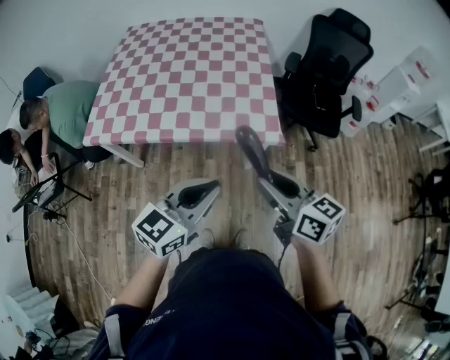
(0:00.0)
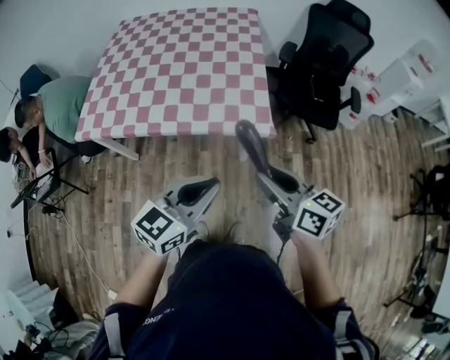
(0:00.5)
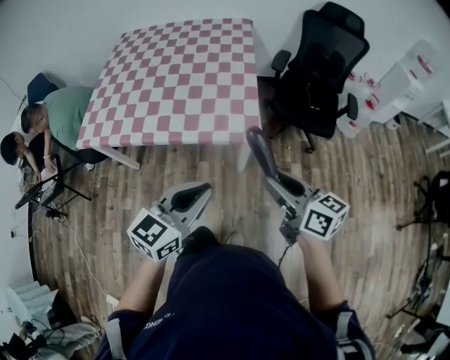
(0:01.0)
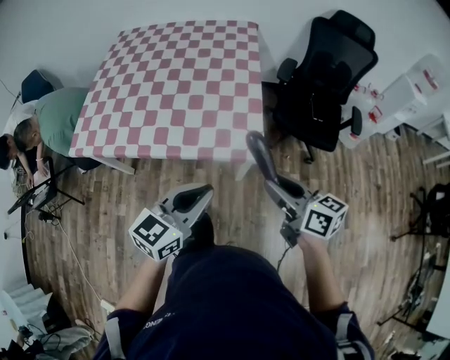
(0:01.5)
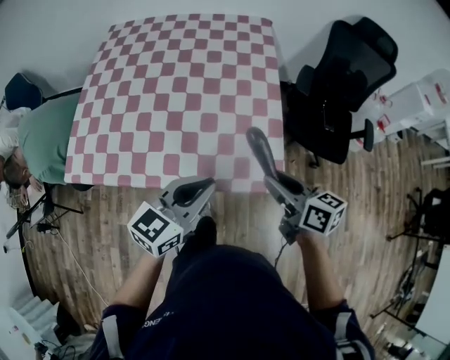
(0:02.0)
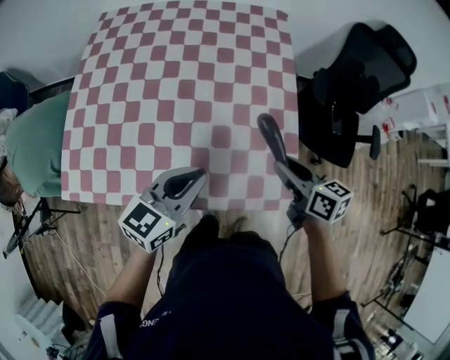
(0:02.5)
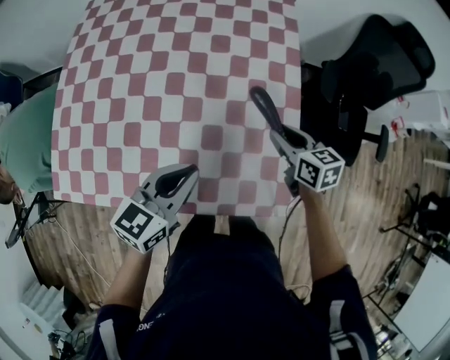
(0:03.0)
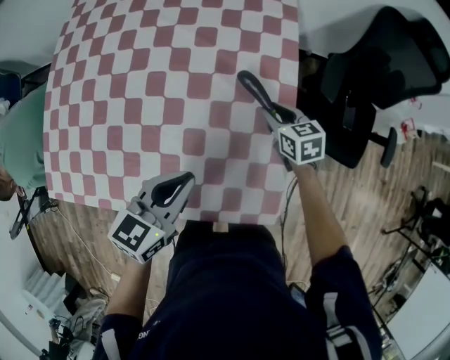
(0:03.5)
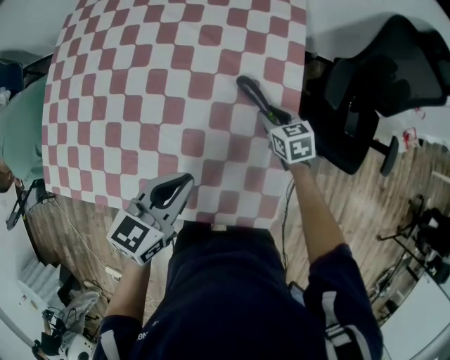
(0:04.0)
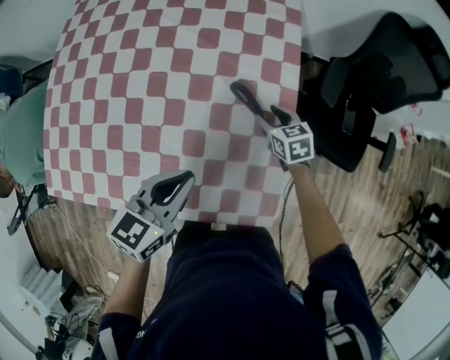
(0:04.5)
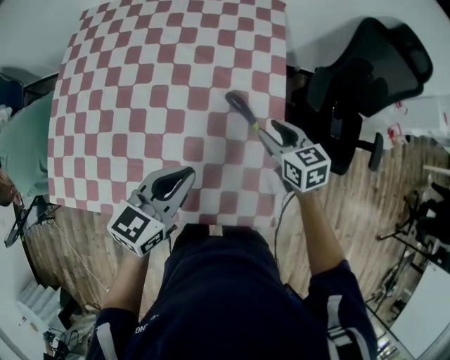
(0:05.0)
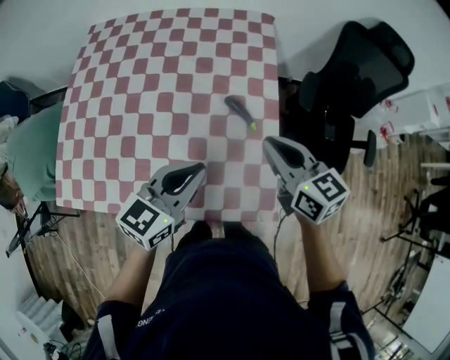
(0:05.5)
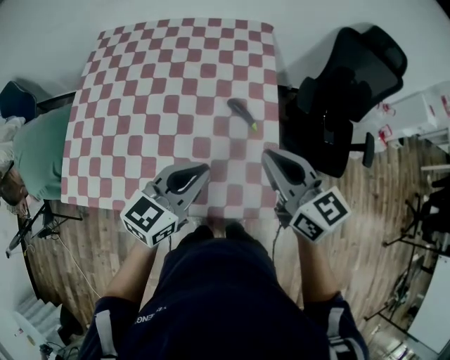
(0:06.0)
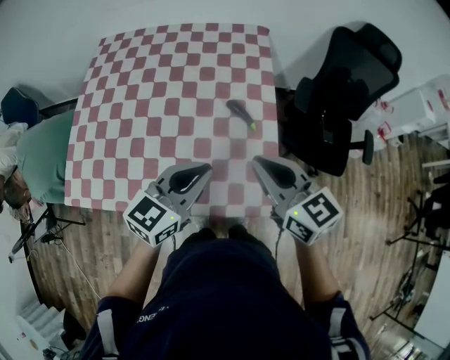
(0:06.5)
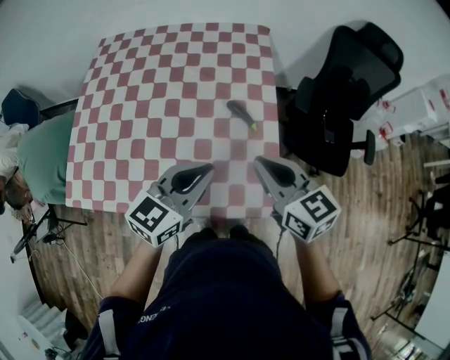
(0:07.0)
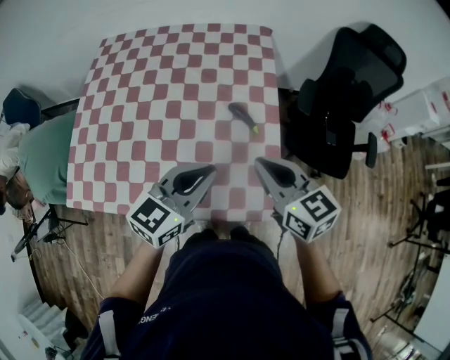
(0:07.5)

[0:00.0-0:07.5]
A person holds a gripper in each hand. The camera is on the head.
0:00.0 to 0:02.0: Both grippers move forward, about 25 cm.
0:02.0 to 0:04.0: The right gripper moves forward and downward, some 40 cm, and rotates approximately 40 degrees, while the left gripper travels forward and downward by roughly 25 cm, and changes its angle by about 20 degrees.
0:04.0 to 0:05.5: The right gripper shifts approximately 35 cm upward and backward, angles its fingers upward, by roughly 30 degrees, and closes its fingers, while the left gripper moves upward, approximately 10 cm.
0:05.5 to 0:07.5: The right gripper goes roughly 5 cm backward.

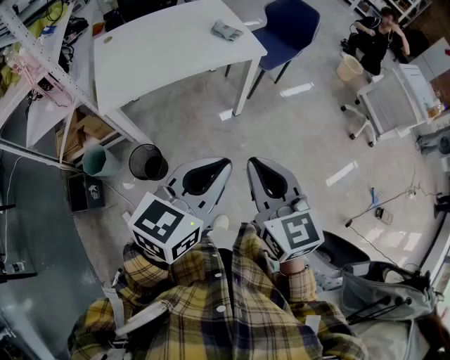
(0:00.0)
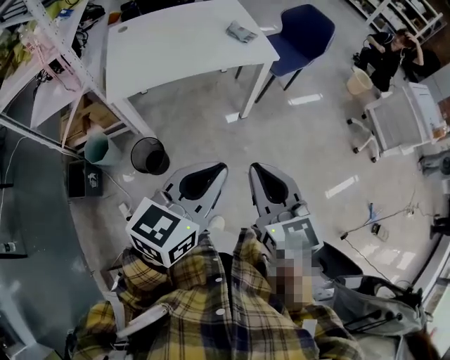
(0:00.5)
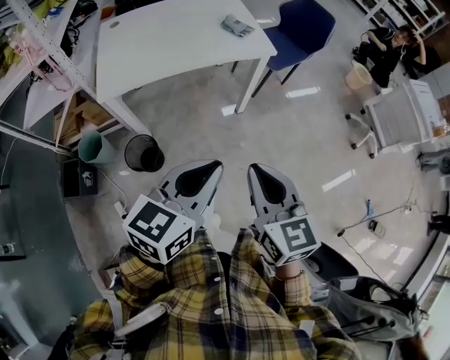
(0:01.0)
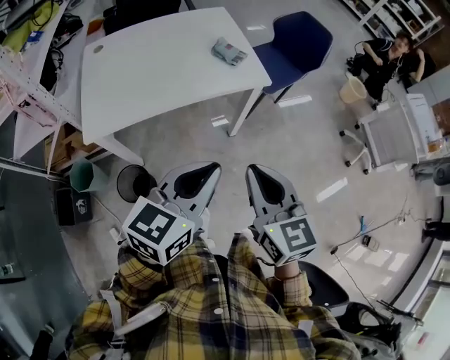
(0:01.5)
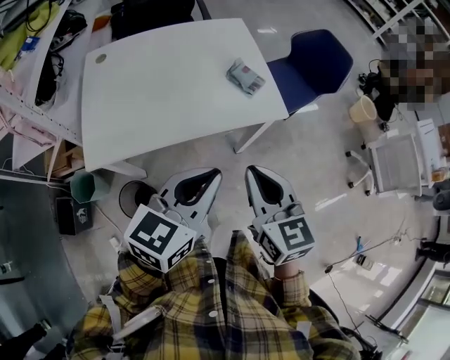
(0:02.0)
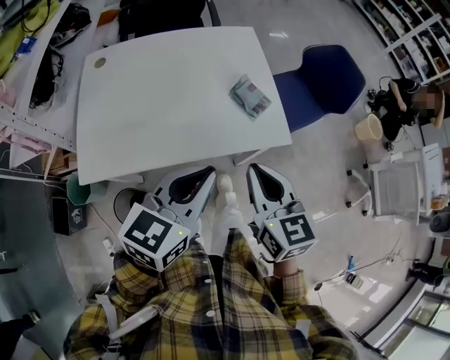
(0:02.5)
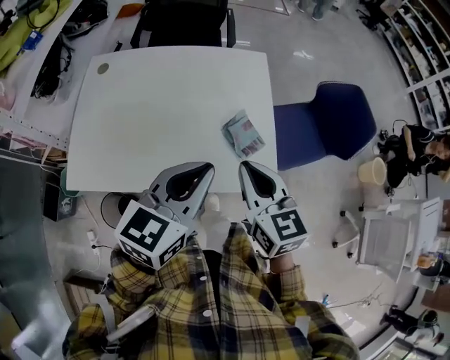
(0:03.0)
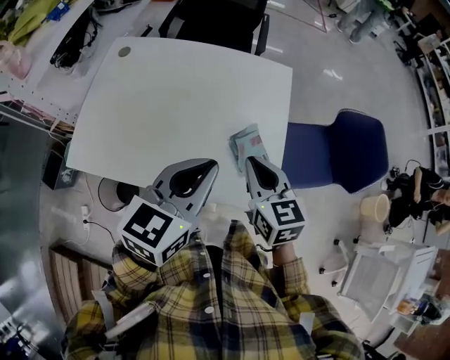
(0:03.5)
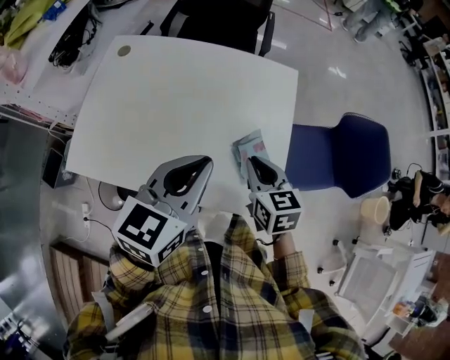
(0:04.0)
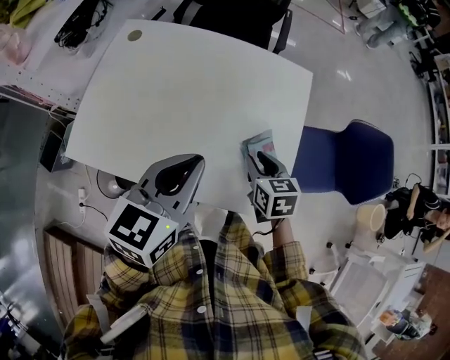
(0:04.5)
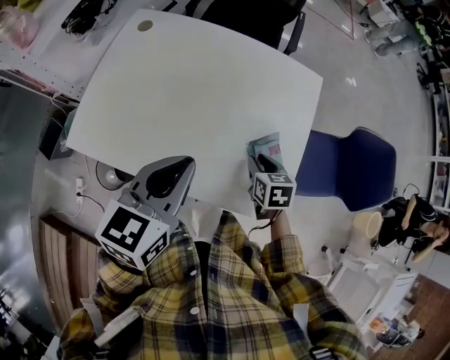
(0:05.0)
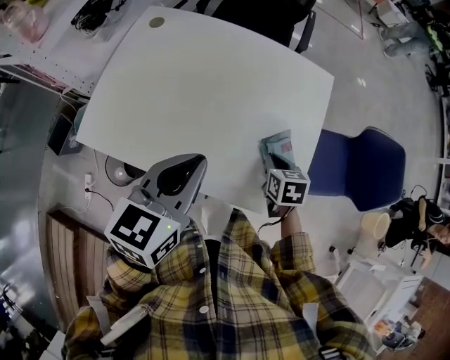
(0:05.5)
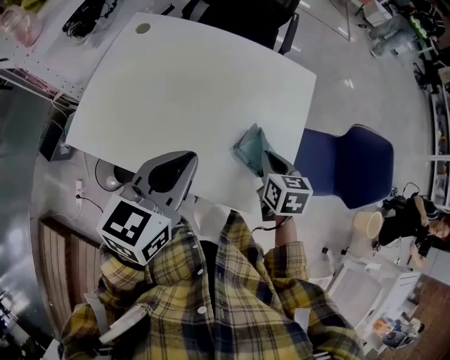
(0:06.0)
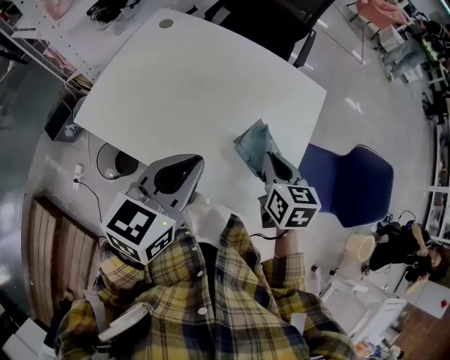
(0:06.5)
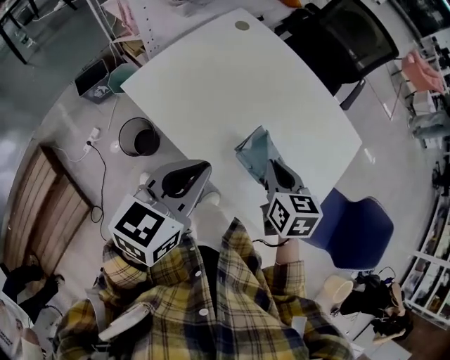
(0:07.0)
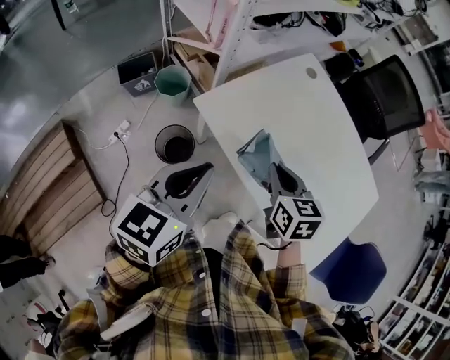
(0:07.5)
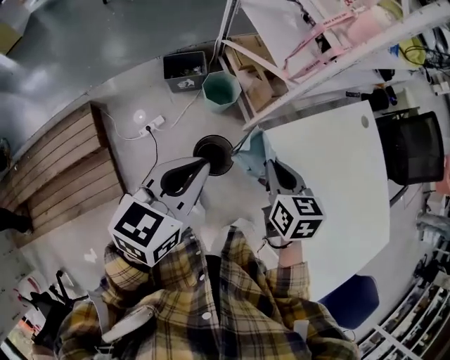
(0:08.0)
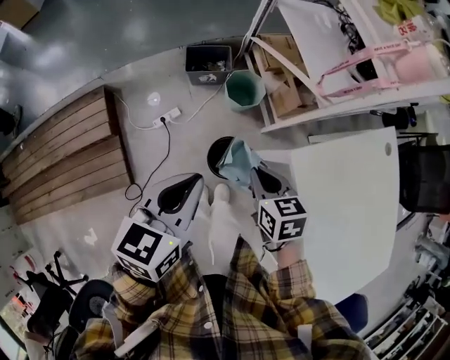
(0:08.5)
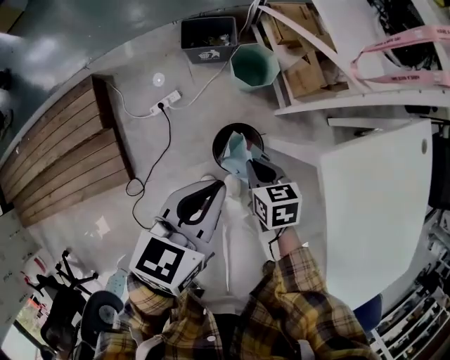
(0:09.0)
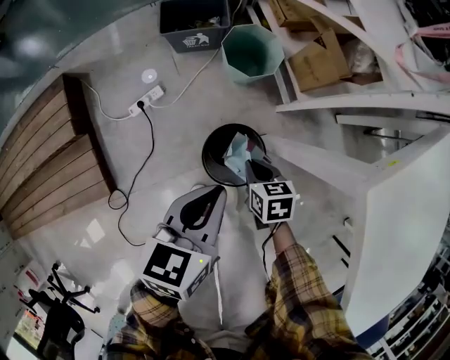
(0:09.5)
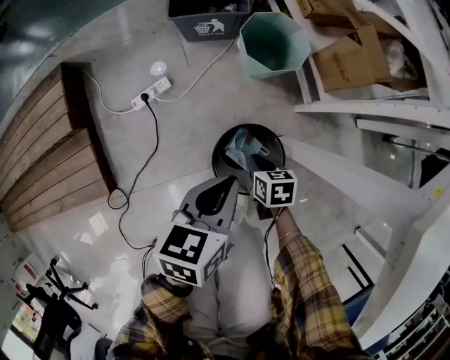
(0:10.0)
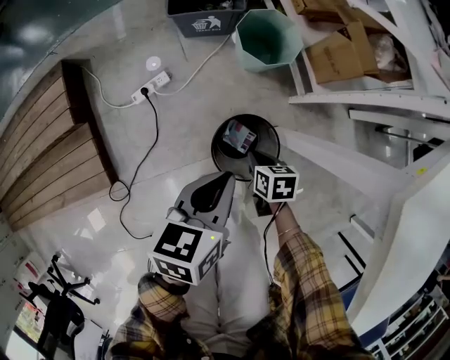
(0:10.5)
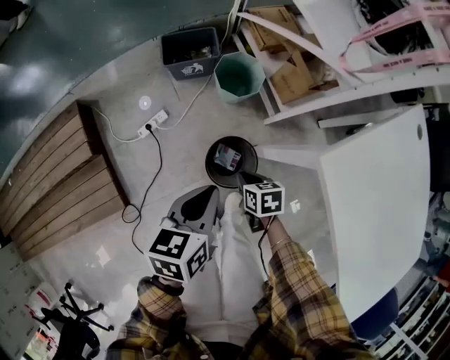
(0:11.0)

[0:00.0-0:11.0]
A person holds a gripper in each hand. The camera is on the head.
0:00.0 to 0:02.0: Both grippers move forward, about 30 cm.
0:02.0 to 0:03.5: The left gripper ends up some 30 cm from where it was, and changes its angle by roughly 30 degrees. Meanwhile the right gripper changes place by approximately 35 cm, and changes its angle by approximately 30 degrees.
0:03.5 to 0:05.5: The right gripper heads downward, covering roughly 20 cm, changes its angle by about 30 degrees, and opens, then closes once more; the left gripper goes approximately 10 cm to the left.
0:05.5 to 0:07.5: The left gripper moves about 30 cm, and turns by some 30 degrees. Meanwhile the right gripper moves about 40 cm, and rotates roughly 40 degrees.
0:07.5 to 0:09.0: The left gripper moves some 35 cm, and swivels about 30 degrees. The right gripper shifts by some 50 cm, and changes its angle by some 30 degrees.
0:09.0 to 0:11.0: Both grippers travel together downward, some 10 cm.

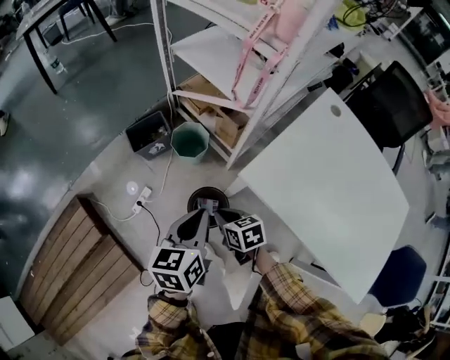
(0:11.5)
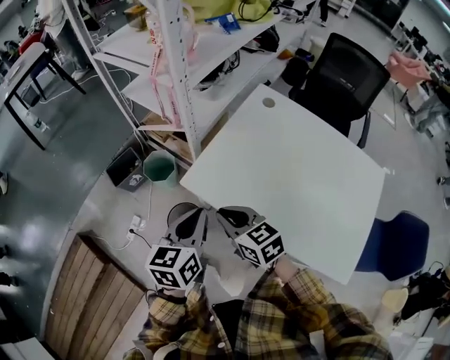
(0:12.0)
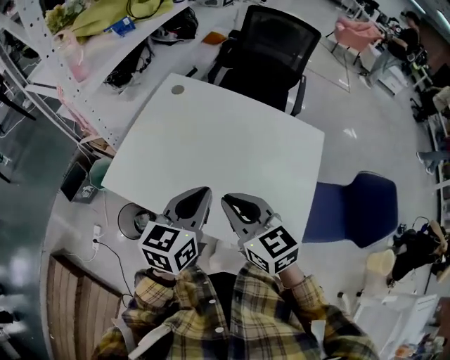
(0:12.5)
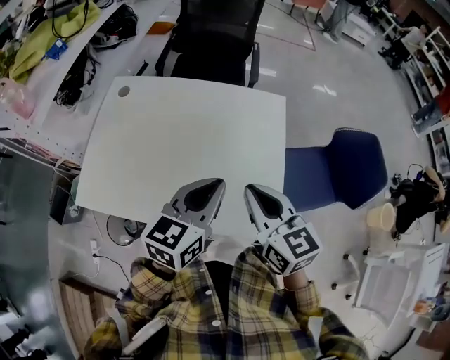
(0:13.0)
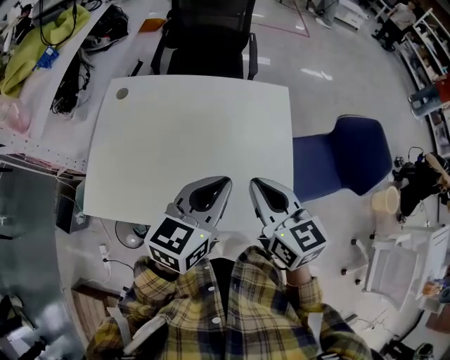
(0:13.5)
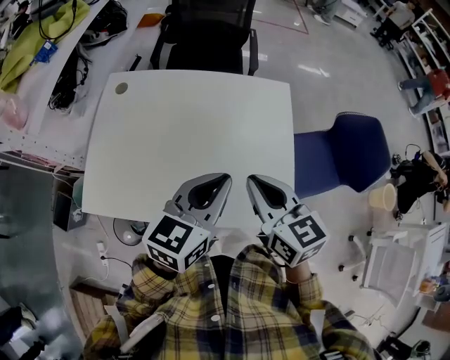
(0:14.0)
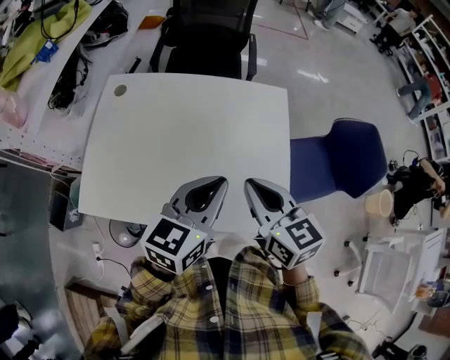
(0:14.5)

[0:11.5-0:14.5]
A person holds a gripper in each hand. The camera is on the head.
0:11.5 to 0:13.0: Both grippers are carried some 70 cm. The left gripper changes its angle by some 60 degrees. The right gripper rotates approximately 60 degrees.
0:13.0 to 0:14.5: The grippers make only small movements.

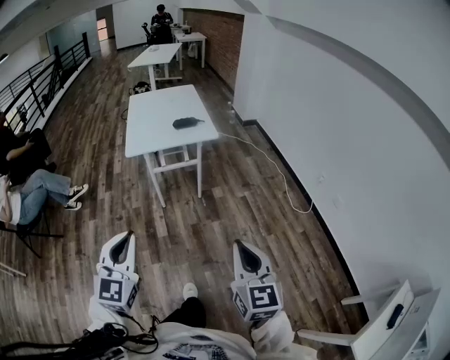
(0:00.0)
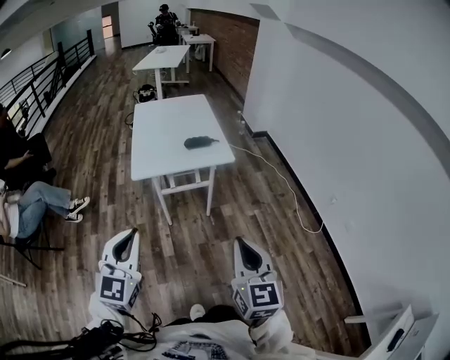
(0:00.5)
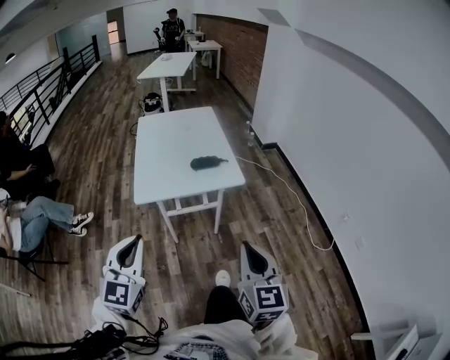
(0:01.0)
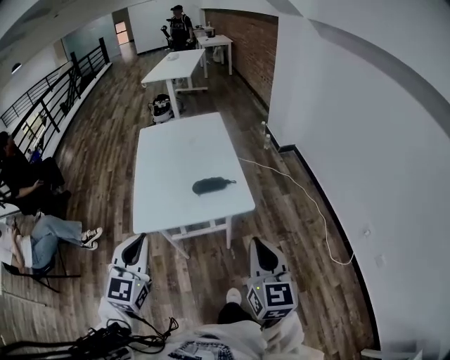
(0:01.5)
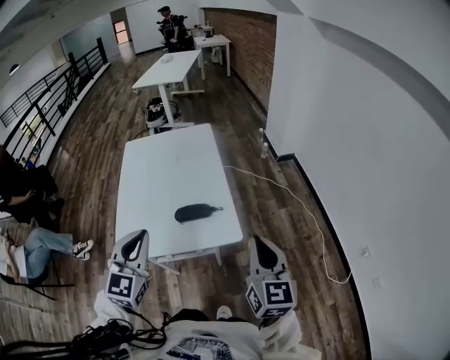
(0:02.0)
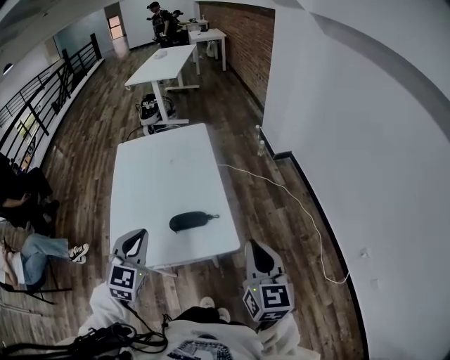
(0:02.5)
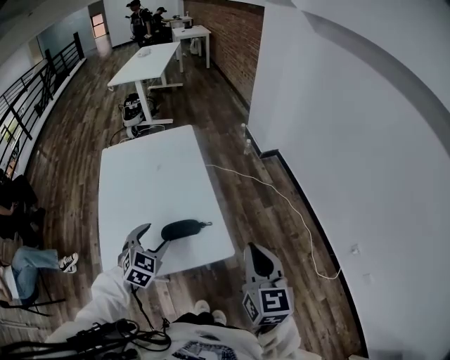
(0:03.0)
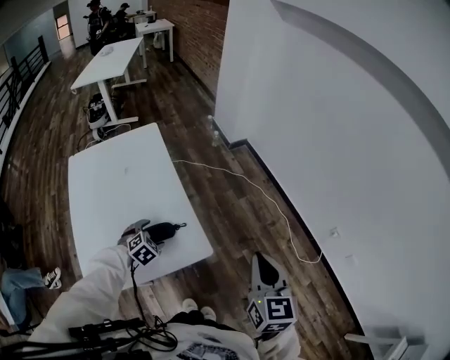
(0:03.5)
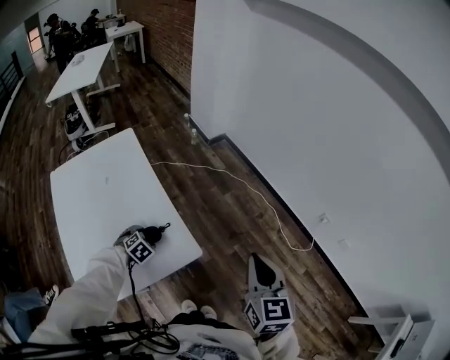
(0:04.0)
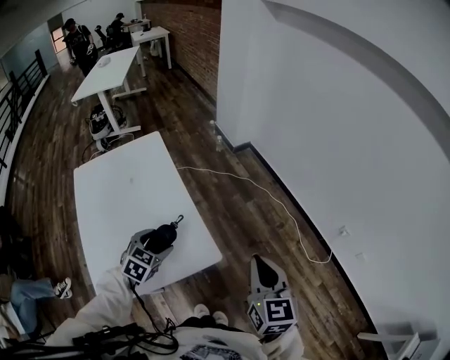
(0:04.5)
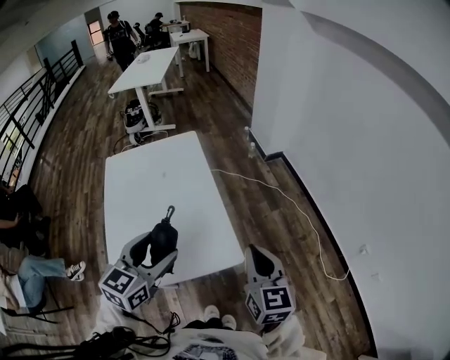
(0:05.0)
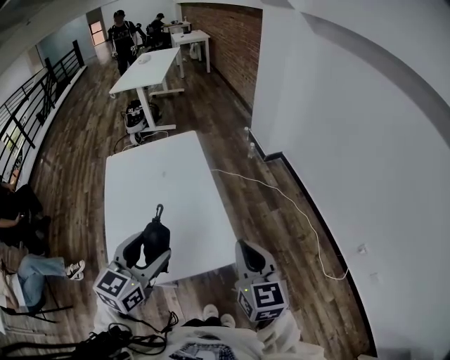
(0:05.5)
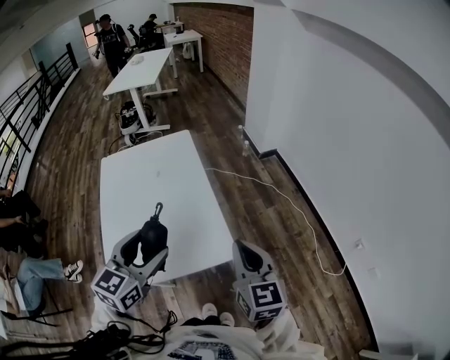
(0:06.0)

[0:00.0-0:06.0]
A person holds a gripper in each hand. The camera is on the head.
0:00.0 to 0:02.0: Both grippers are carried forward, approximately 60 cm.
0:02.0 to 0:04.0: The left gripper travels downward by some 35 cm, tips its fingers downward by about 60 degrees, and opens its fingers, while the right gripper moves approximately 10 cm, and changes its angle by some 30 degrees.
0:04.0 to 0:06.0: The left gripper is displaced upward by about 35 cm, and tips its fingers upward by about 50 degrees, while the right gripper moves to the left, approximately 15 cm, and swivels roughly 30 degrees.
